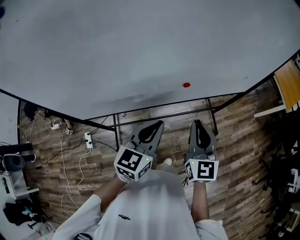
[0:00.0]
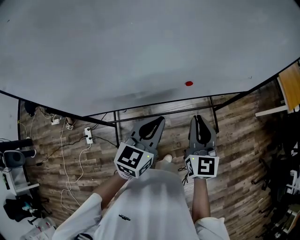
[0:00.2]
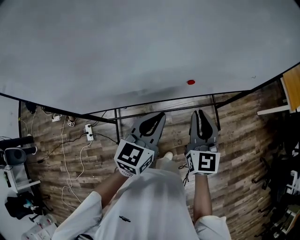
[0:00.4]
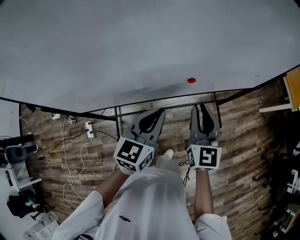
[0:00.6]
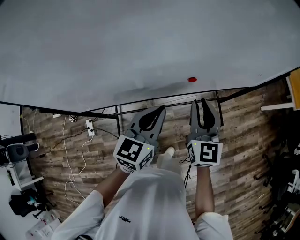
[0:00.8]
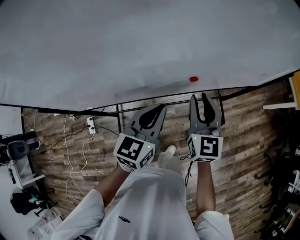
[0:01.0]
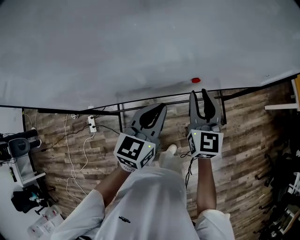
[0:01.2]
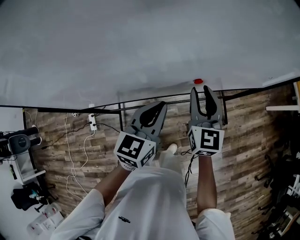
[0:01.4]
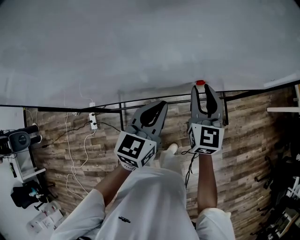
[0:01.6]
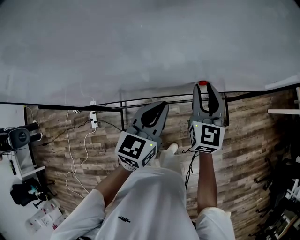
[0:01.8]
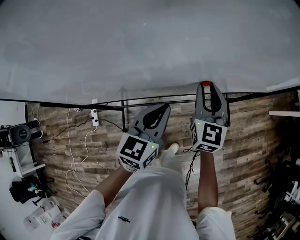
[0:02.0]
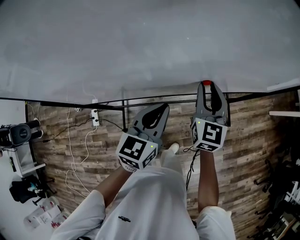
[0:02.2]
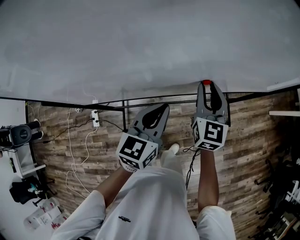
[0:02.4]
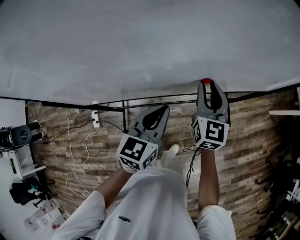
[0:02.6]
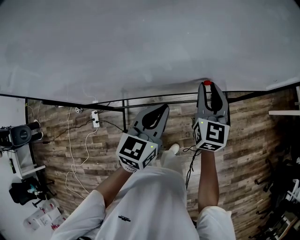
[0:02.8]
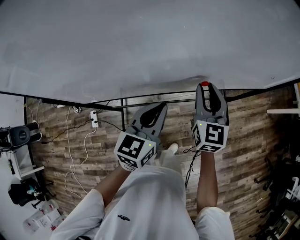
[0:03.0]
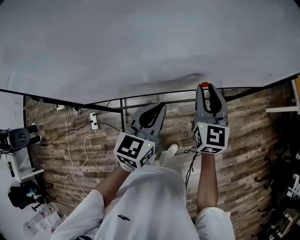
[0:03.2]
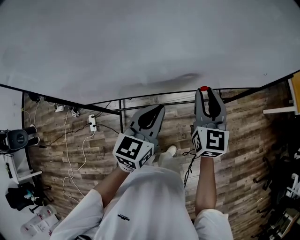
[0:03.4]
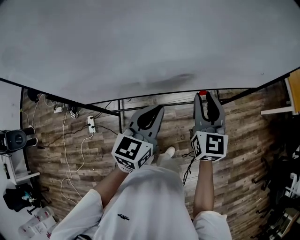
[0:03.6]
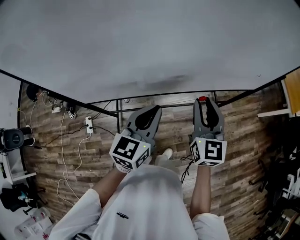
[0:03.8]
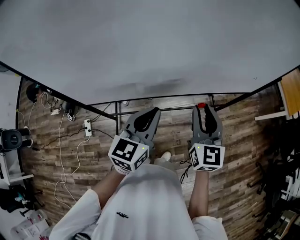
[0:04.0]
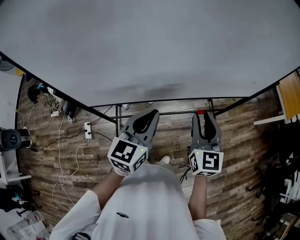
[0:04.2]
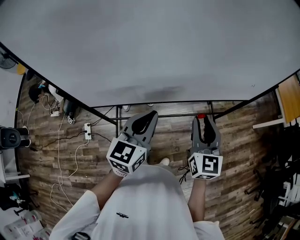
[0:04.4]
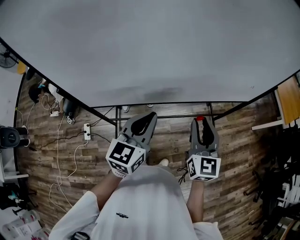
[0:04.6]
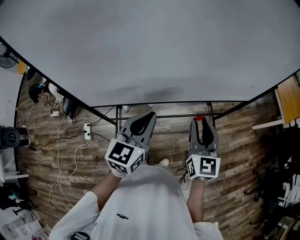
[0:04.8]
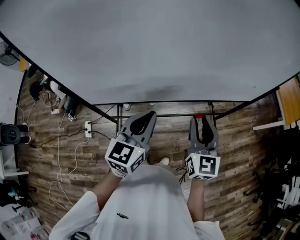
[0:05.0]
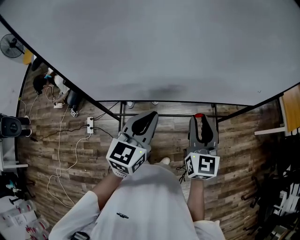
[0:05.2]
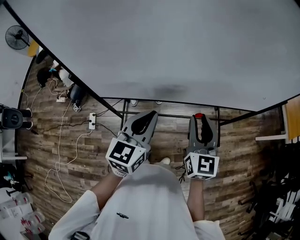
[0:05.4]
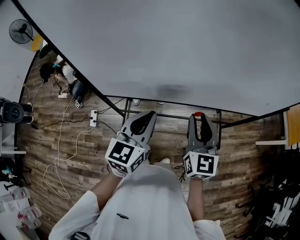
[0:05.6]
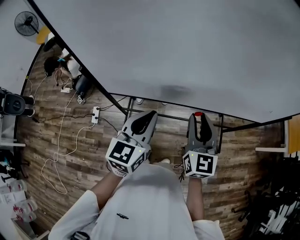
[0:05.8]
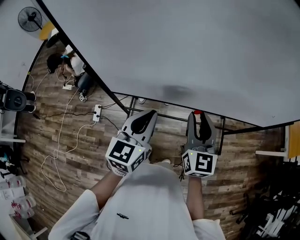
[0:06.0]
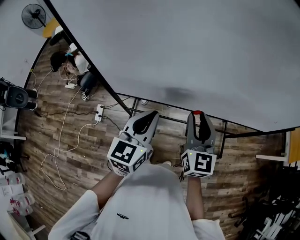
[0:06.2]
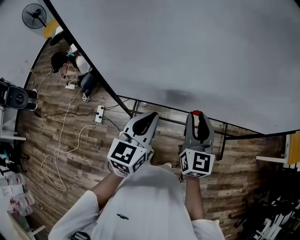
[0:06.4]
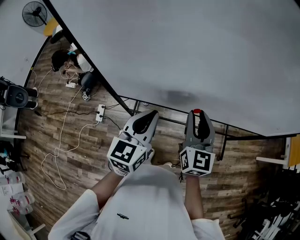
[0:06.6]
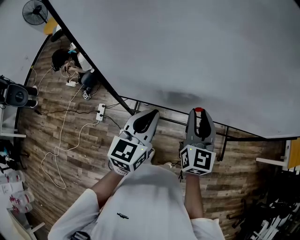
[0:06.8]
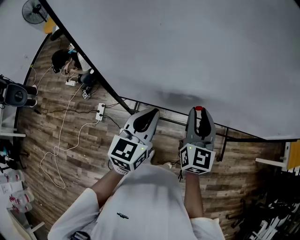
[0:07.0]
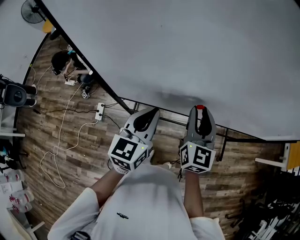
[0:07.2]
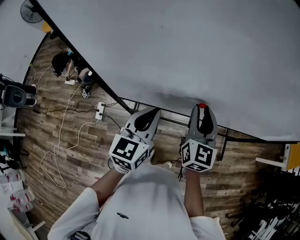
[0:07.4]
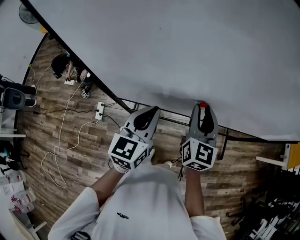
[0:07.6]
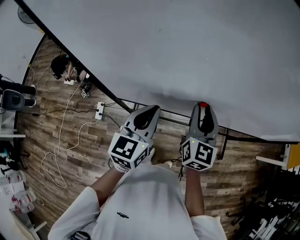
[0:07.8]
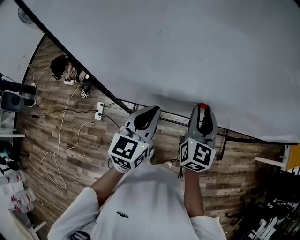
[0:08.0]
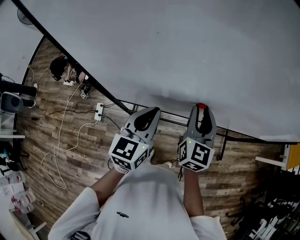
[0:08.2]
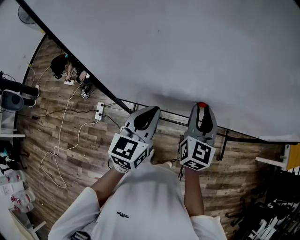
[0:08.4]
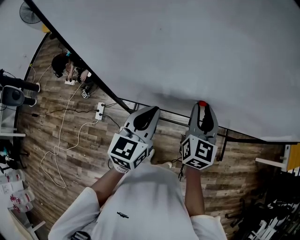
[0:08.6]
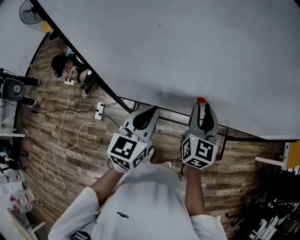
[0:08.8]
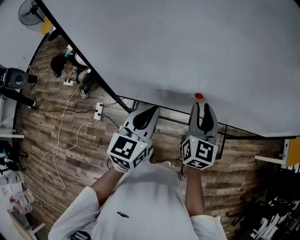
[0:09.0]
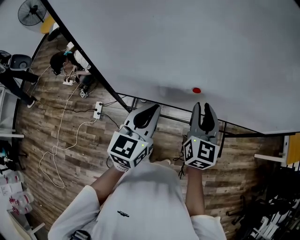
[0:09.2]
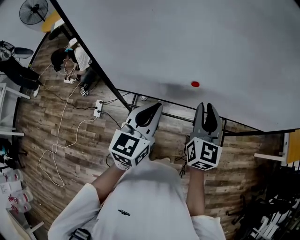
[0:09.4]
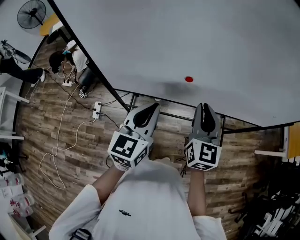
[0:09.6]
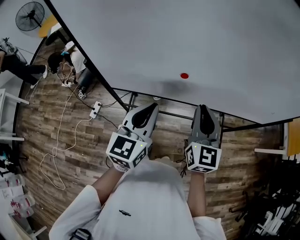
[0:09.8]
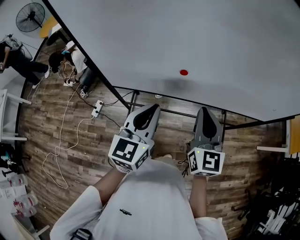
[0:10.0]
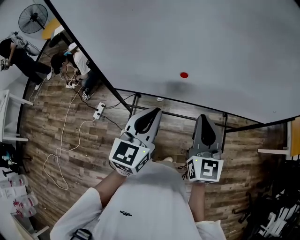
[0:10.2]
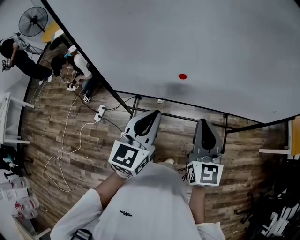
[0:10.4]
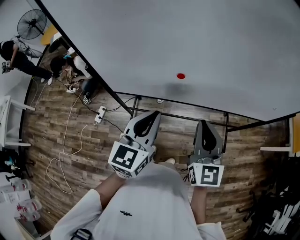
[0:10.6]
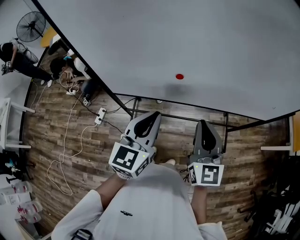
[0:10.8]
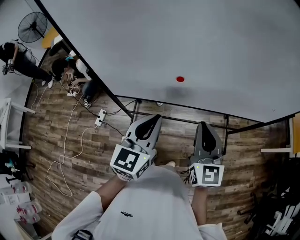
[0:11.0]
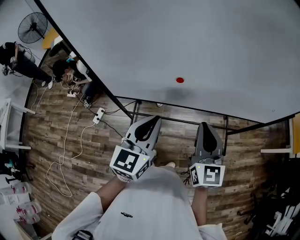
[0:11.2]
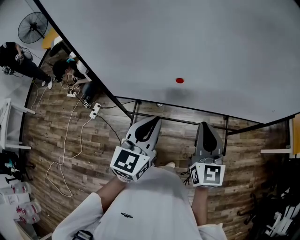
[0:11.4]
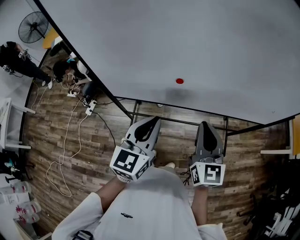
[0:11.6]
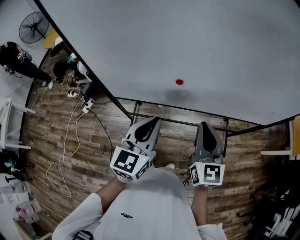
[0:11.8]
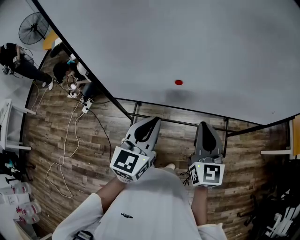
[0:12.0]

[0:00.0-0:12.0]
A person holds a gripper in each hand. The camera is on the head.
0:00.0 to 0:01.6: The left gripper goes about 10 cm forward and downward, while the right gripper travels forward and downward by about 15 cm, and opens up.
0:01.6 to 0:03.0: The grippers move only a little.
0:03.0 to 0:04.4: The grippers both shift backward and upward by about 15 cm.
0:04.4 to 0:06.0: Both grippers travel together to the left, approximately 10 cm.
0:06.0 to 0:07.6: Both grippers move forward and to the left, roughly 10 cm.
0:07.6 to 0:09.0: The grippers stay close to where they were, moving slightly.
0:09.0 to 0:10.4: The grippers both shift backward and to the right by some 15 cm. The right gripper closes up.
0:10.4 to 0:12.0: There are only small adjustments of the grippers.

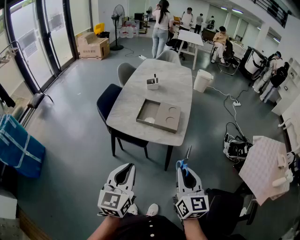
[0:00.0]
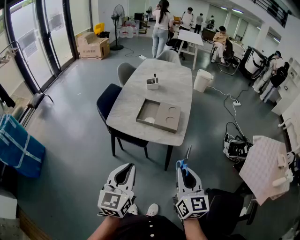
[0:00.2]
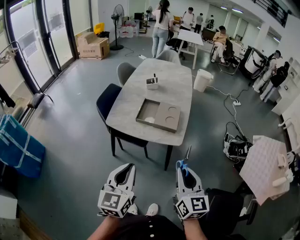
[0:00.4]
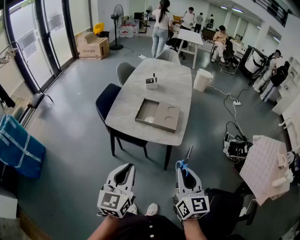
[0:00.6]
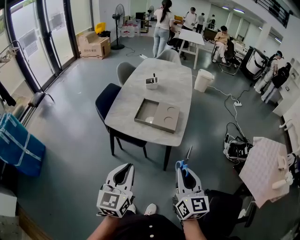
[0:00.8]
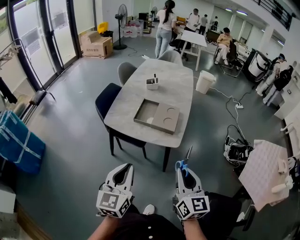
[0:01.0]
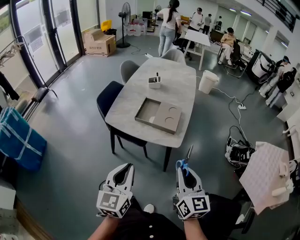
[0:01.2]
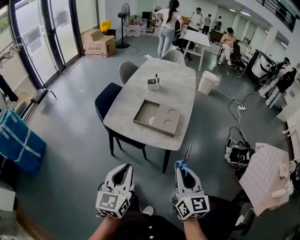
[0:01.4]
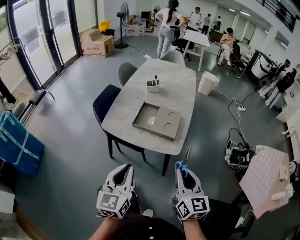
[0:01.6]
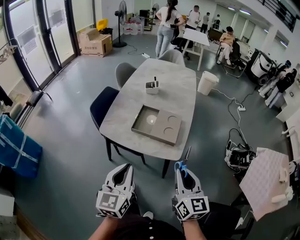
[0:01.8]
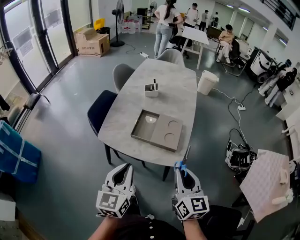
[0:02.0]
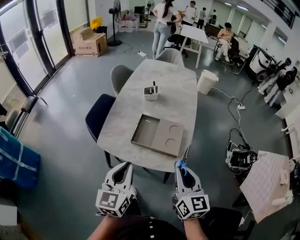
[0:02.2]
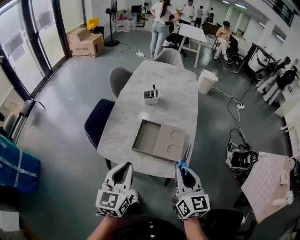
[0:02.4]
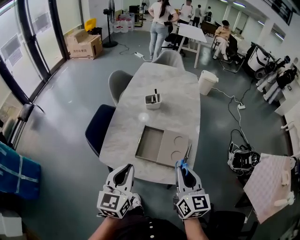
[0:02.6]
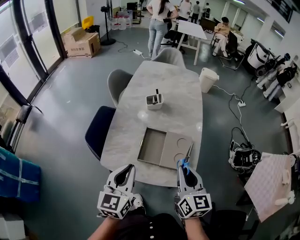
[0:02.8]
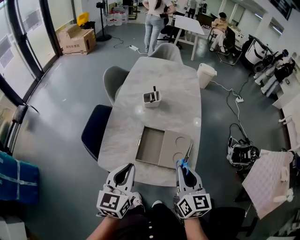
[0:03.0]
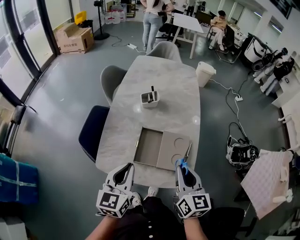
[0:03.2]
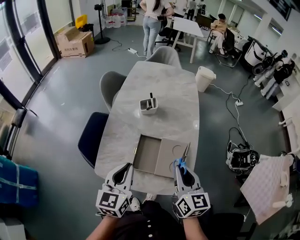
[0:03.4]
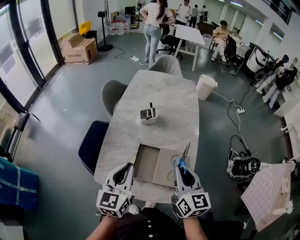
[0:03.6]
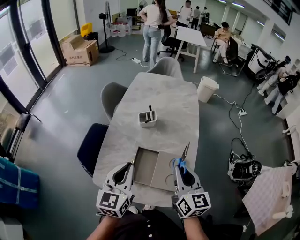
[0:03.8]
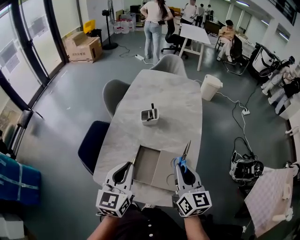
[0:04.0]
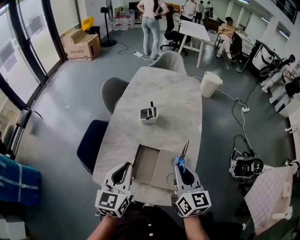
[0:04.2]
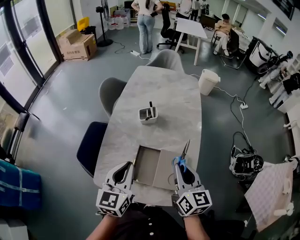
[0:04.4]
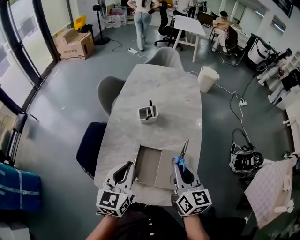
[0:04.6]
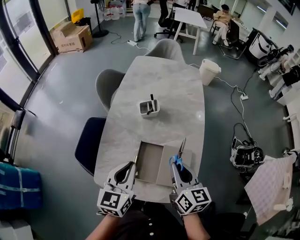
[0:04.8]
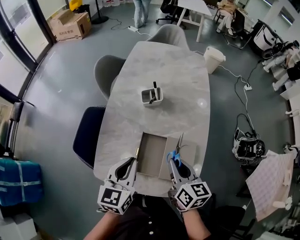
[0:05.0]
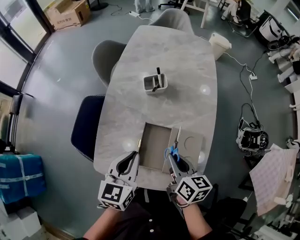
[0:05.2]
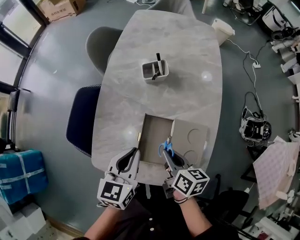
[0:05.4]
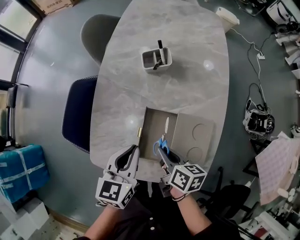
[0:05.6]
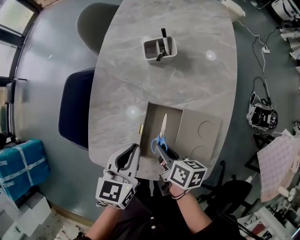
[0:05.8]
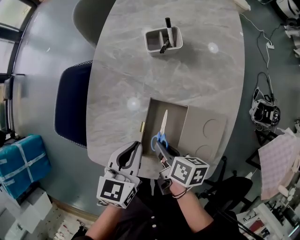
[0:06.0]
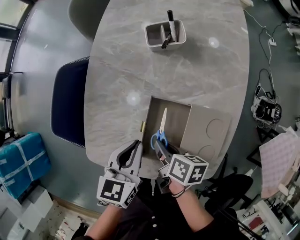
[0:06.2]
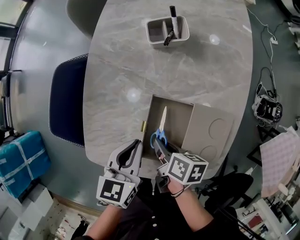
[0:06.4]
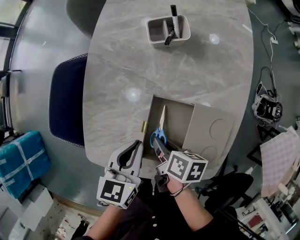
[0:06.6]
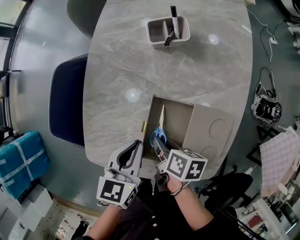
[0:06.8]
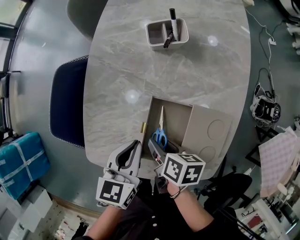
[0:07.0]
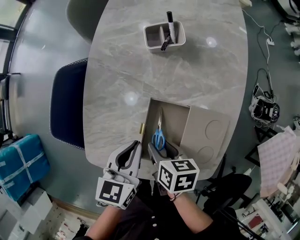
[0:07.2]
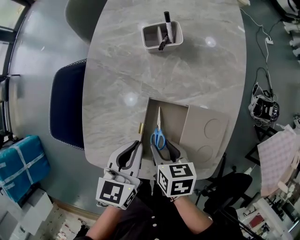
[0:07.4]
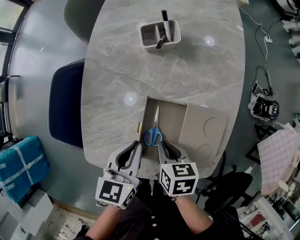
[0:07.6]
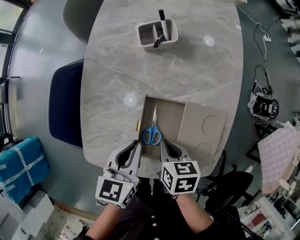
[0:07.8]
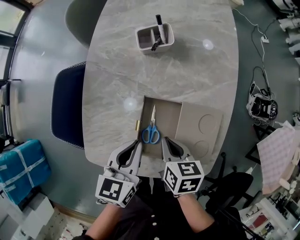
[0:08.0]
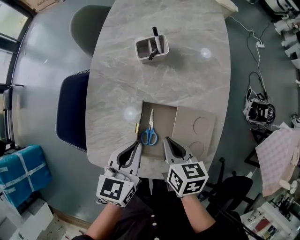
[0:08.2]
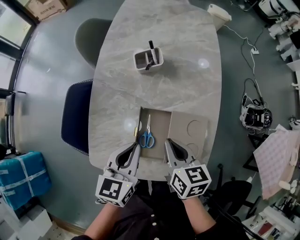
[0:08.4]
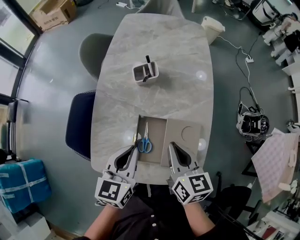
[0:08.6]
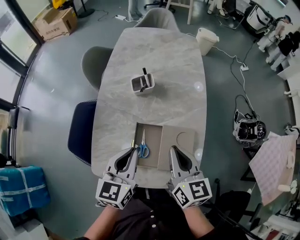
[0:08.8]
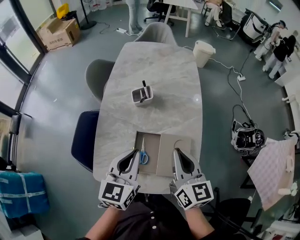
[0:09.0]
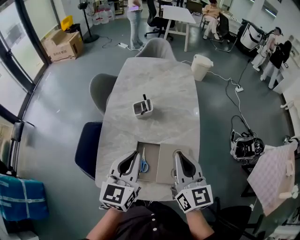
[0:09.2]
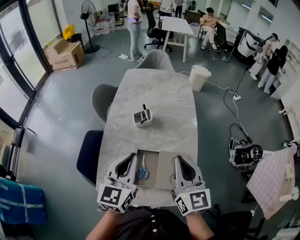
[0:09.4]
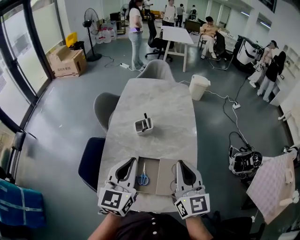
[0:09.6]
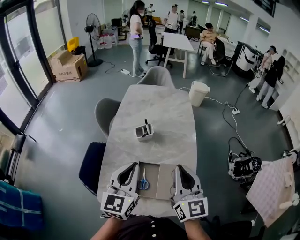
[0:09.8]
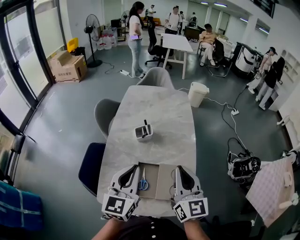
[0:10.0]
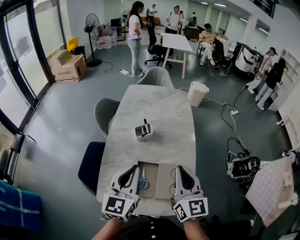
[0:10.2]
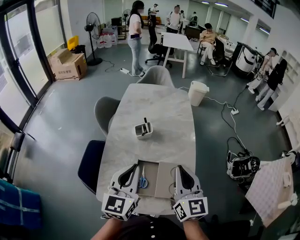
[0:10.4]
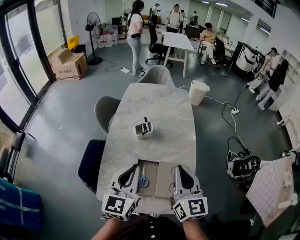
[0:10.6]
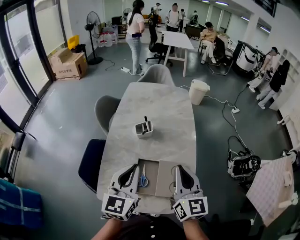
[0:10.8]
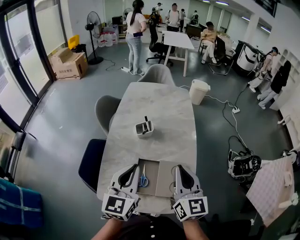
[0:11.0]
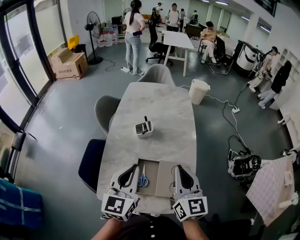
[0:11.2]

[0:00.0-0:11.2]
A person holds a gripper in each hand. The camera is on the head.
0:00.0 to 0:01.6: The two grippers go about 5 cm forward.
0:01.6 to 0:03.2: Both grippers travel together forward, about 30 cm.
0:03.2 to 0:04.8: Both grippers move forward, about 10 cm.
0:04.8 to 0:06.4: The right gripper heads downward and to the left, covering approximately 30 cm, and tilts its fingers approximately 30 degrees downward. Meanwhile the left gripper goes approximately 20 cm downward, and changes its angle by about 20 degrees.
0:06.4 to 0:08.0: The right gripper ends up some 5 cm from where it was, rotates approximately 30 degrees, and opens, then closes once more.
0:08.0 to 0:09.6: Both grippers move upward, about 30 cm. The left gripper rotates roughly 30 degrees. The right gripper tips its fingers upward by some 50 degrees.
0:09.6 to 0:11.2: The grippers make only small movements.

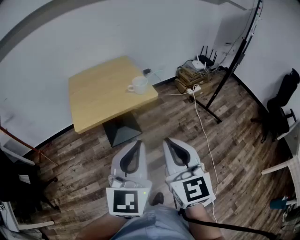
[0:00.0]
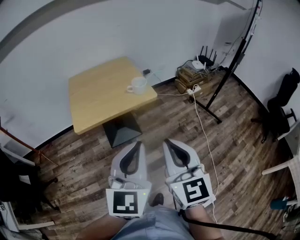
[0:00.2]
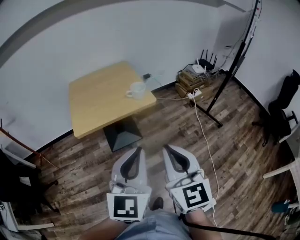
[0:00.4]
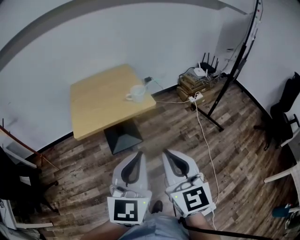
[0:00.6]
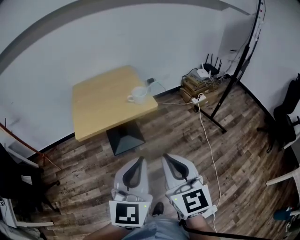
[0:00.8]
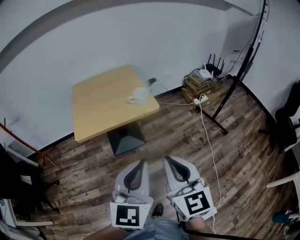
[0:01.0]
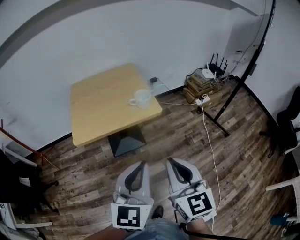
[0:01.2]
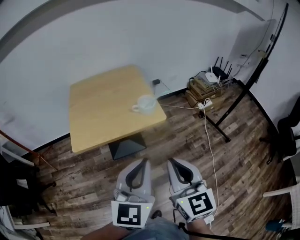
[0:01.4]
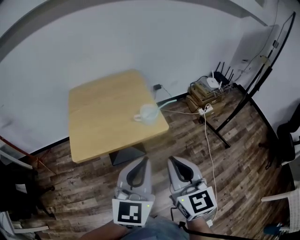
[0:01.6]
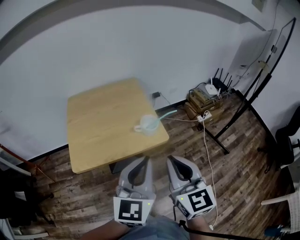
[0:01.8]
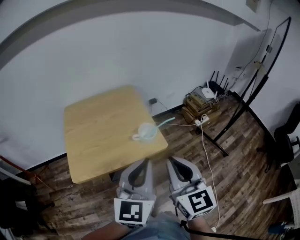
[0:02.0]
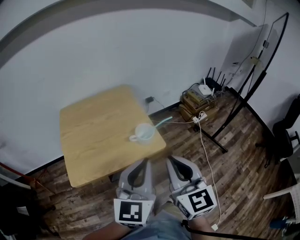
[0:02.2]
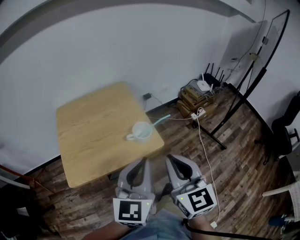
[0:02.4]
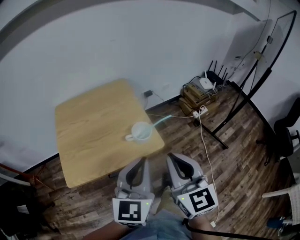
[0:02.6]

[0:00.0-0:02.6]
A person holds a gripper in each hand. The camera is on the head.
0:00.0 to 0:01.2: The two grippers go some 5 cm forward.
0:01.2 to 0:02.6: The two grippers go approximately 25 cm forward.
